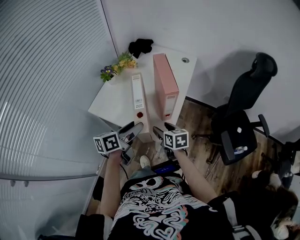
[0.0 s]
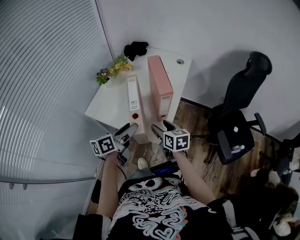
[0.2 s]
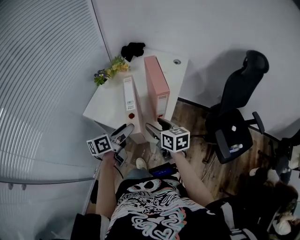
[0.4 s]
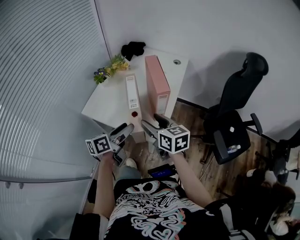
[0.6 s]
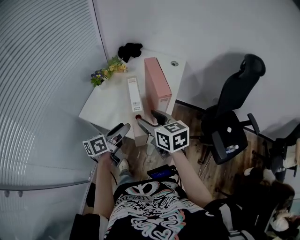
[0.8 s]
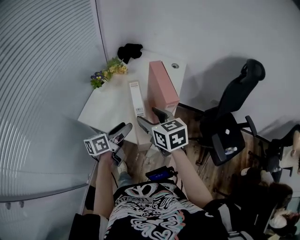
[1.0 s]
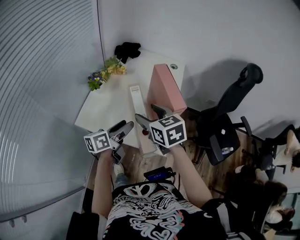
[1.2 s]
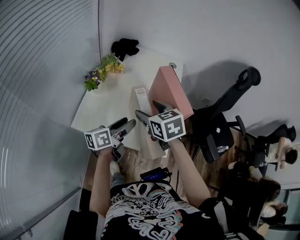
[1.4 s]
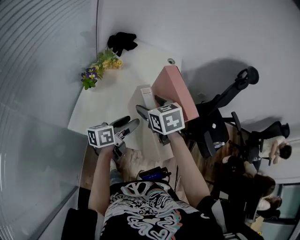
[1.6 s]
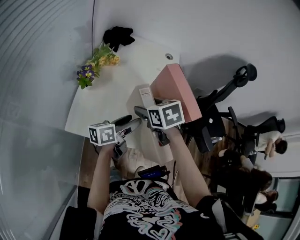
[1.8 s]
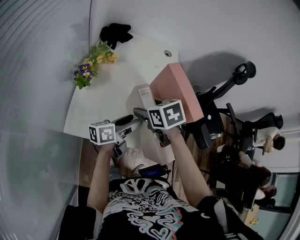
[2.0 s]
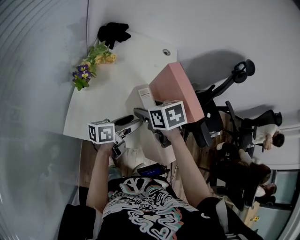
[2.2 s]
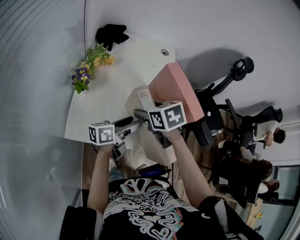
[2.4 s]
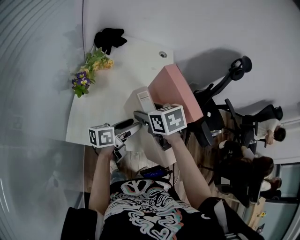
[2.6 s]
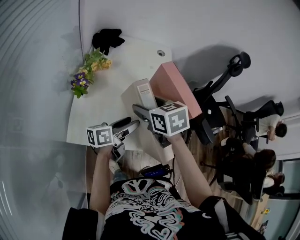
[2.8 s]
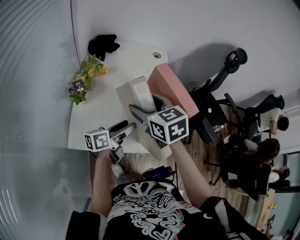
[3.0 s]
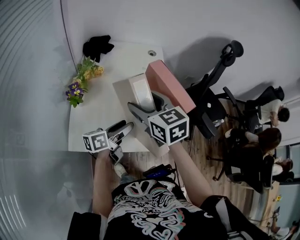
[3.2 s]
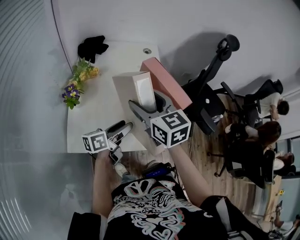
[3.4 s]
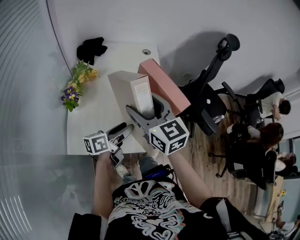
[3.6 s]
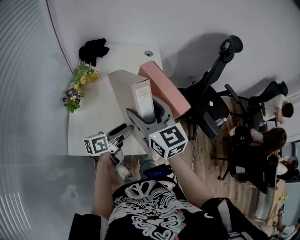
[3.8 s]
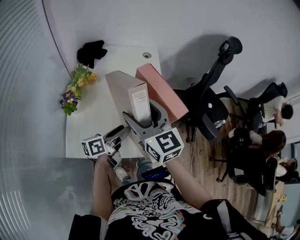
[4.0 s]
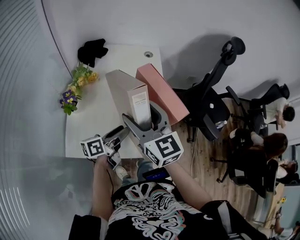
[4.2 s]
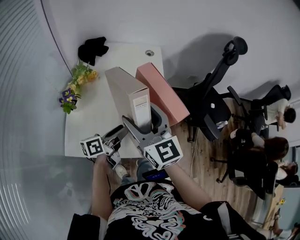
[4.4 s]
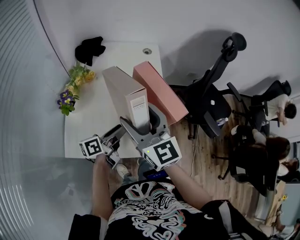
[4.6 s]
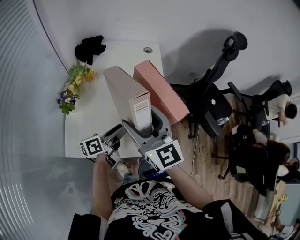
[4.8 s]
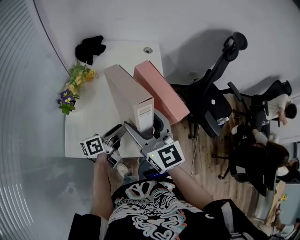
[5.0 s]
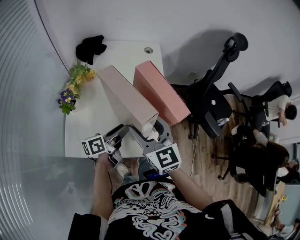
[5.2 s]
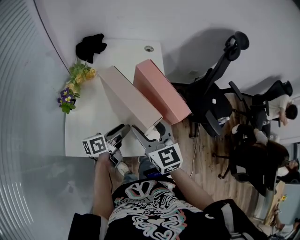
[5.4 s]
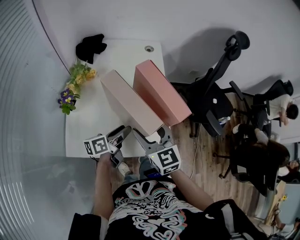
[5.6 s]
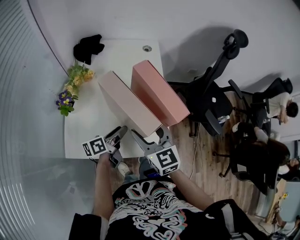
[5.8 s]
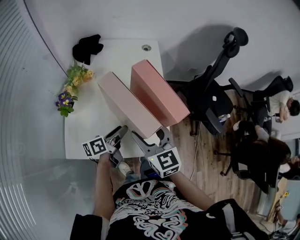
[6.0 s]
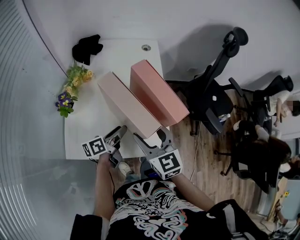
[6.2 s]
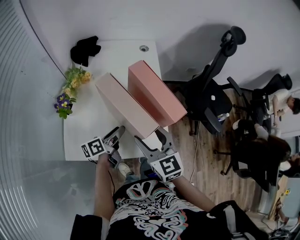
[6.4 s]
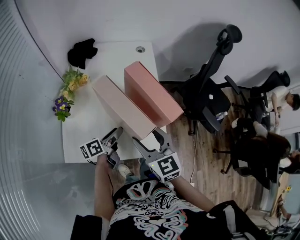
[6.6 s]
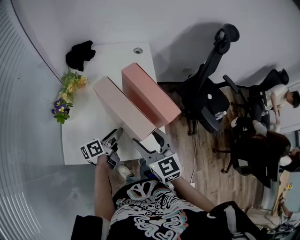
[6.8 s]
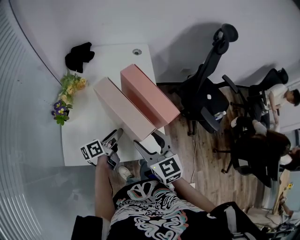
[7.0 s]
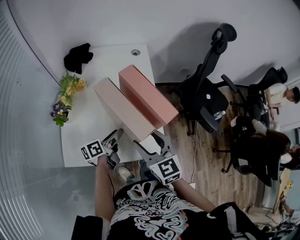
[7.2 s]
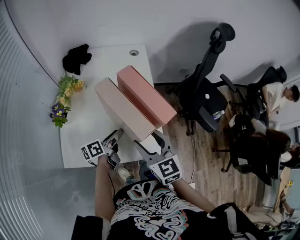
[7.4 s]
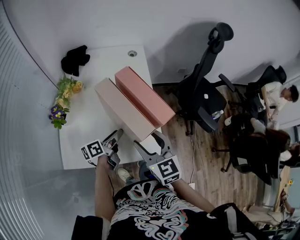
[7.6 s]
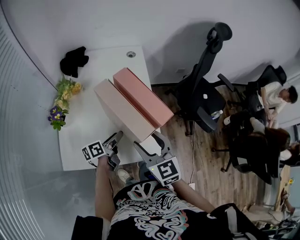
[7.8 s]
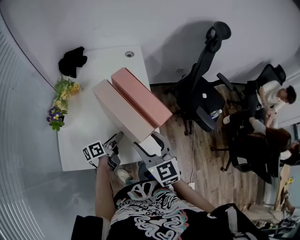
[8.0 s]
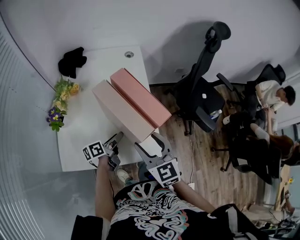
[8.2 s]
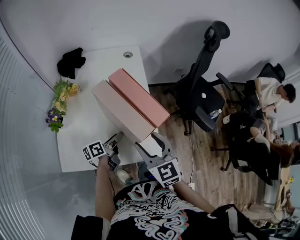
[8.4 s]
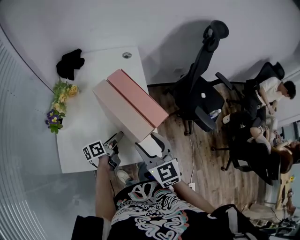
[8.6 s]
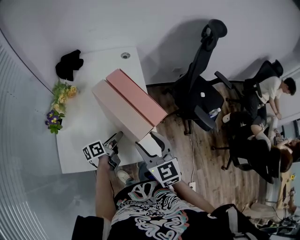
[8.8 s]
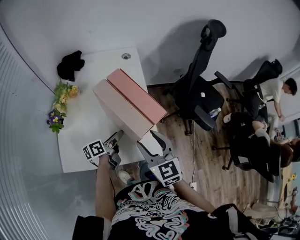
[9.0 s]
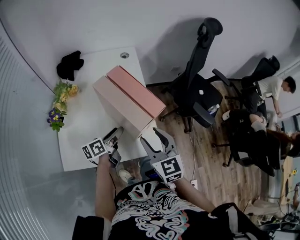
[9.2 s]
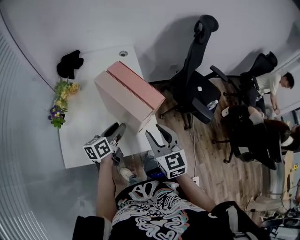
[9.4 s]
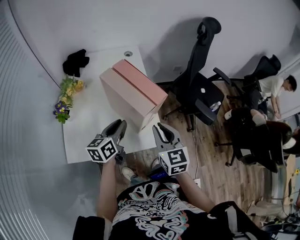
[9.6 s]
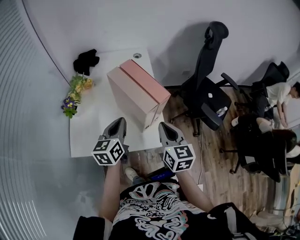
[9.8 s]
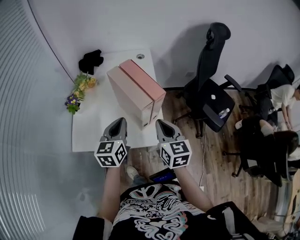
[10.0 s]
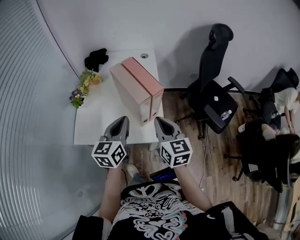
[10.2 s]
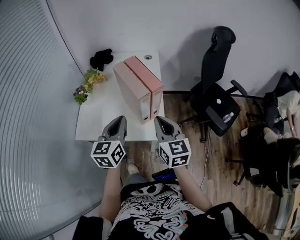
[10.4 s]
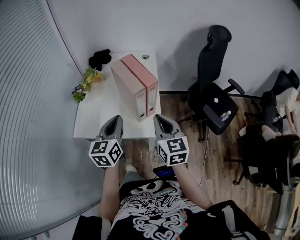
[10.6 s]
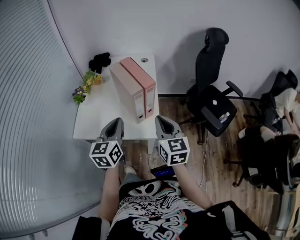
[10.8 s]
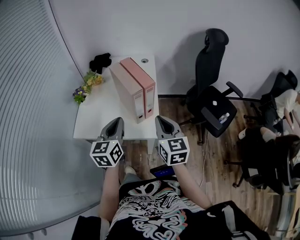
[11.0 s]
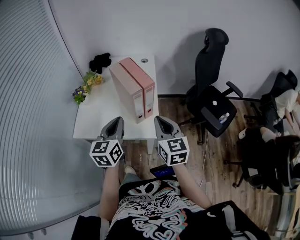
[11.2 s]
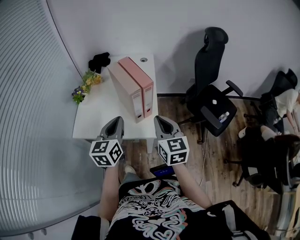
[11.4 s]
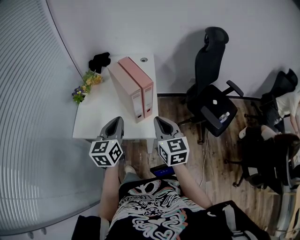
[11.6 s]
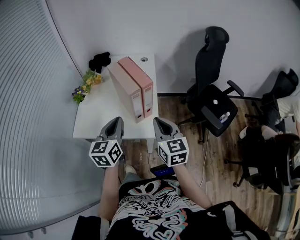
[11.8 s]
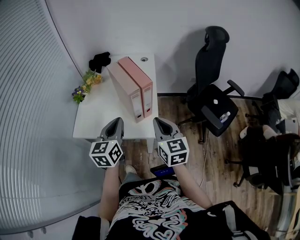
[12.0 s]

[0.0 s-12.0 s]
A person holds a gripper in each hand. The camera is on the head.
0.0 to 1.6 s: The left gripper is displaced forward and to the left by about 15 cm. Meanwhile the right gripper goes approximately 25 cm forward, upward and to the left, and turns by approximately 20 degrees.
1.6 to 3.0 s: The grippers move only a little.
3.0 to 4.4 s: The right gripper shifts by some 5 cm, and rotates roughly 30 degrees.
4.4 to 6.0 s: The left gripper goes some 5 cm downward. The right gripper heads downward, covering about 10 cm.
6.0 to 7.6 s: The right gripper ends up some 5 cm from where it was.
7.6 to 9.0 s: The grippers make only small movements.
9.0 to 10.4 s: The left gripper heads upward and backward, covering some 25 cm, twists roughly 50 degrees clockwise, seen from behind, and closes; the right gripper shifts approximately 10 cm upward, backward and to the right, and closes its fingers.
10.4 to 12.0 s: The grippers move only a little.

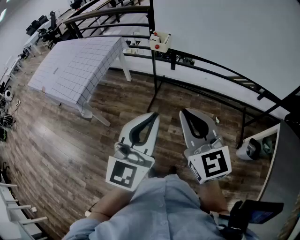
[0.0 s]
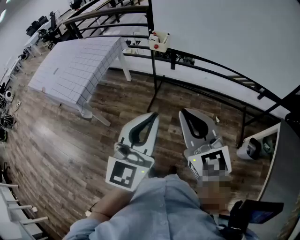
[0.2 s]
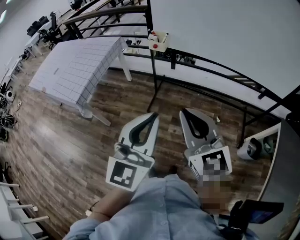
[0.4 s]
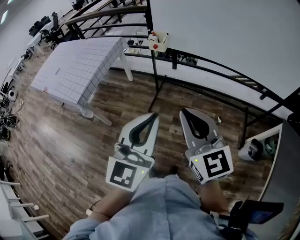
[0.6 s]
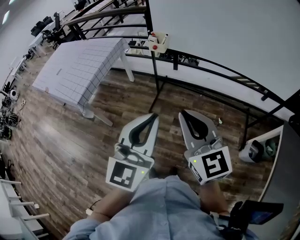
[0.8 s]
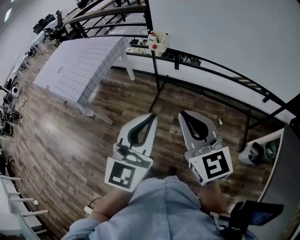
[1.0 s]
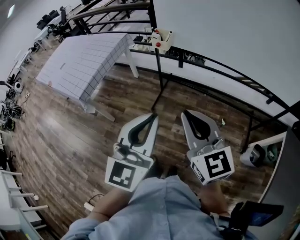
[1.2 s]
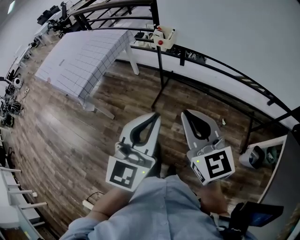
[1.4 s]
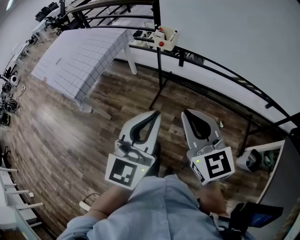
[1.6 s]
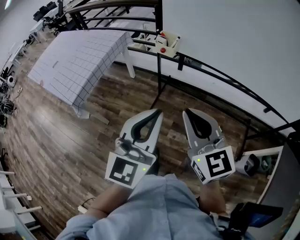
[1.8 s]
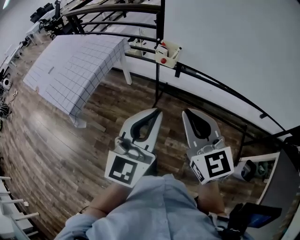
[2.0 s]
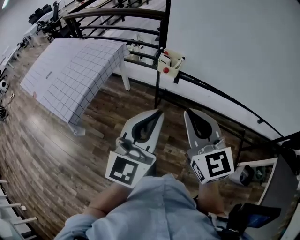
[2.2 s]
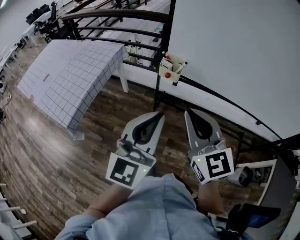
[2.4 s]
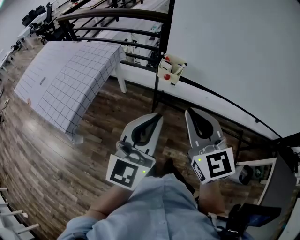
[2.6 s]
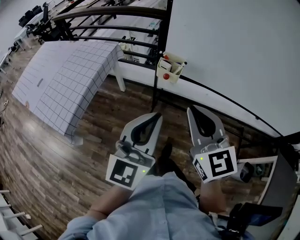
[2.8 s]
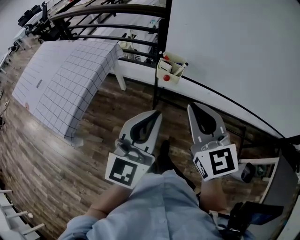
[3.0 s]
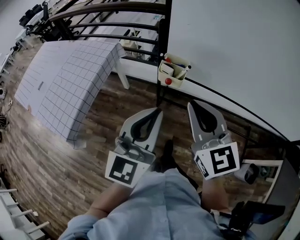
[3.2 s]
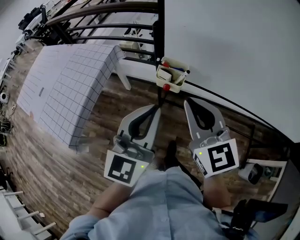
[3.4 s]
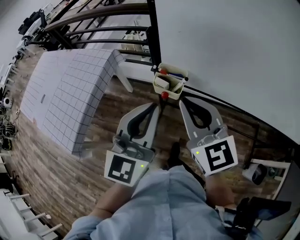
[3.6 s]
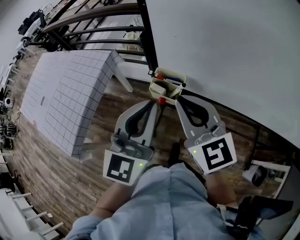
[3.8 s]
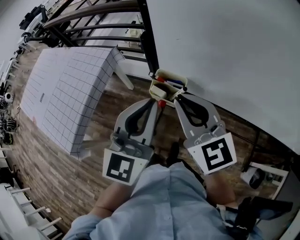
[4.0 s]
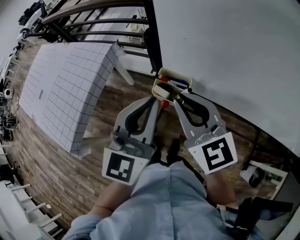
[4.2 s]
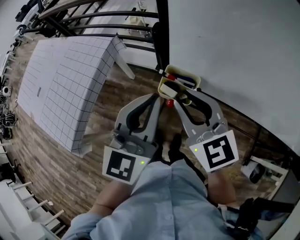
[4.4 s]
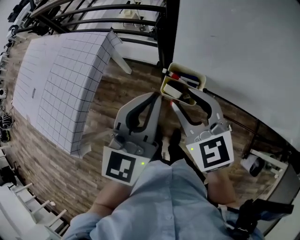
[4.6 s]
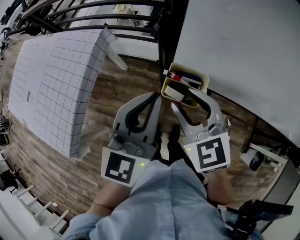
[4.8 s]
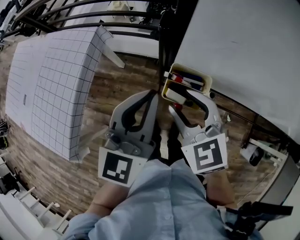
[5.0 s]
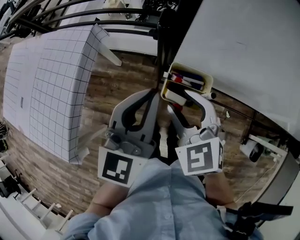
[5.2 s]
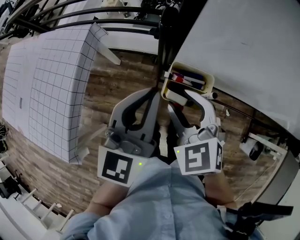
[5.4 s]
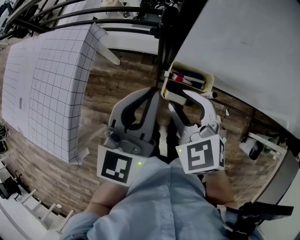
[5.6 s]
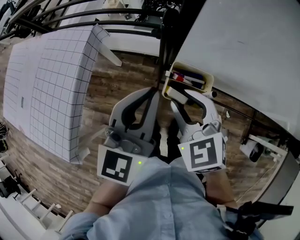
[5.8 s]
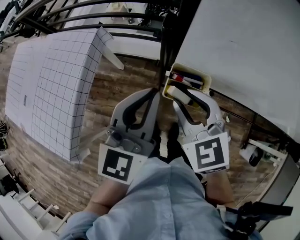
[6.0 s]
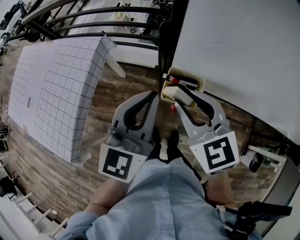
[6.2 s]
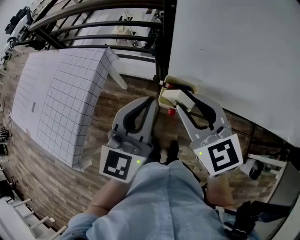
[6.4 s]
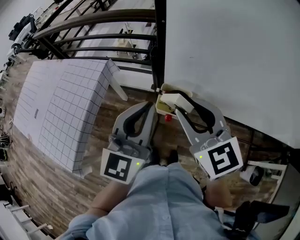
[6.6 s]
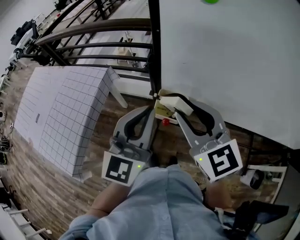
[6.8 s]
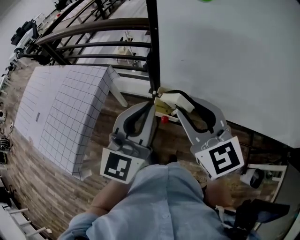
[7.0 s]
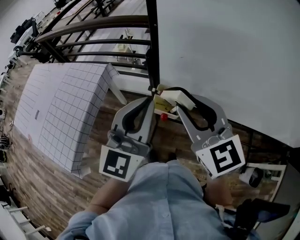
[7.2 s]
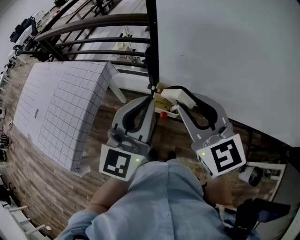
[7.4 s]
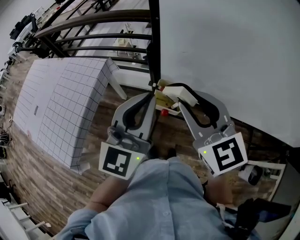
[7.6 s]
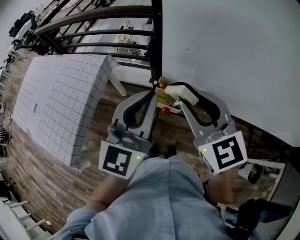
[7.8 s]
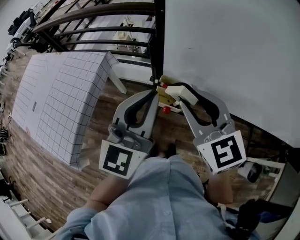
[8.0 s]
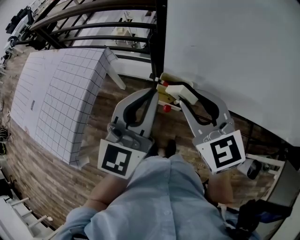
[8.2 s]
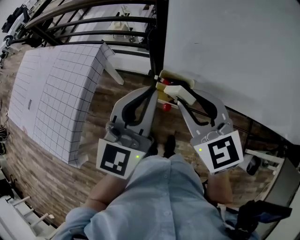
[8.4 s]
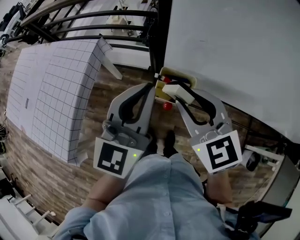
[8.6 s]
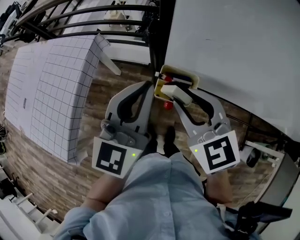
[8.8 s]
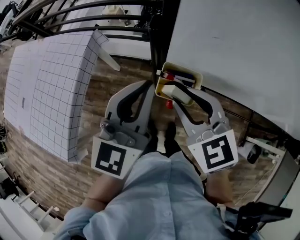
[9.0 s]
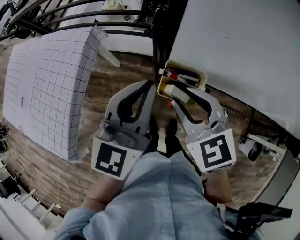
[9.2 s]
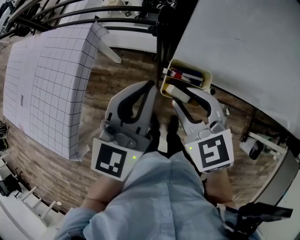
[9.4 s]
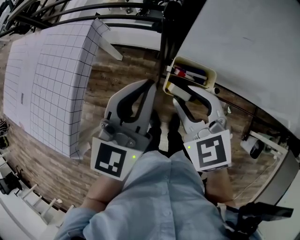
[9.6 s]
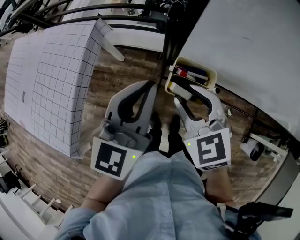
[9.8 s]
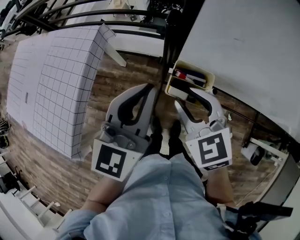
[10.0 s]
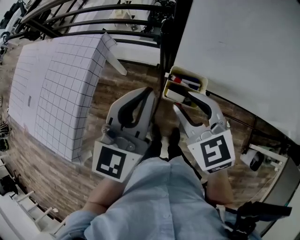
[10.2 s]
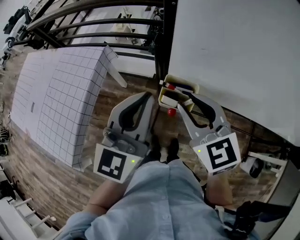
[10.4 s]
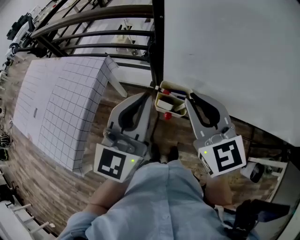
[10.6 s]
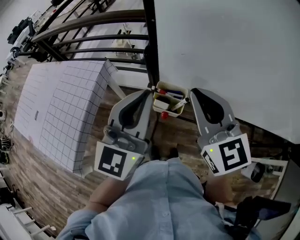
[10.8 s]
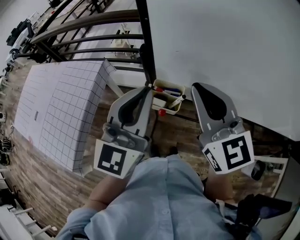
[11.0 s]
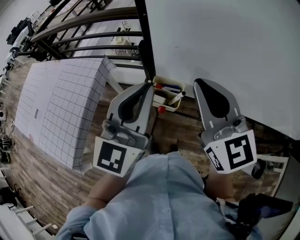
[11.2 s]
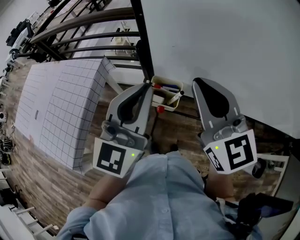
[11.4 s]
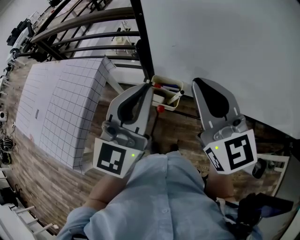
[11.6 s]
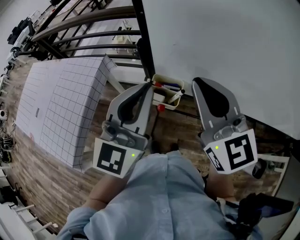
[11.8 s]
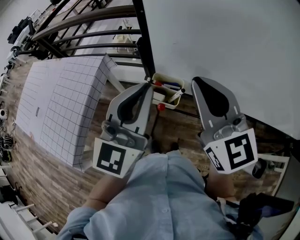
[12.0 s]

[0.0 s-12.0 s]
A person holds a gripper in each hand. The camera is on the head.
0.0 to 1.6 s: The grippers both shift forward by some 5 cm.
1.6 to 3.0 s: Both grippers travel together forward, roughly 25 cm.
3.0 to 4.4 s: The grippers both shift forward by some 20 cm.
4.4 to 6.0 s: The left gripper moves forward, about 5 cm, while the right gripper moves downward, approximately 5 cm.
6.0 to 7.6 s: The right gripper heads upward, covering about 15 cm, and changes its angle by roughly 20 degrees. The left gripper heads upward and backward, covering some 10 cm.
7.6 to 9.0 s: The right gripper shifts approximately 10 cm downward; the left gripper goes roughly 10 cm downward and forward.
9.0 to 10.4 s: The grippers make only small movements.
10.4 to 12.0 s: The right gripper moves upward and to the right, some 15 cm, turns by some 20 degrees, and closes up; the left gripper travels upward and to the right by some 10 cm.
